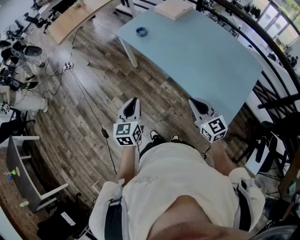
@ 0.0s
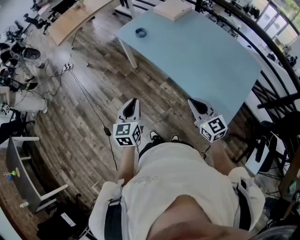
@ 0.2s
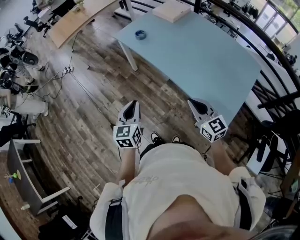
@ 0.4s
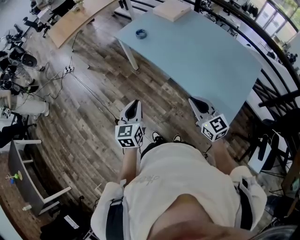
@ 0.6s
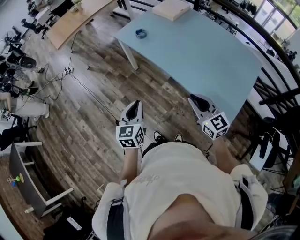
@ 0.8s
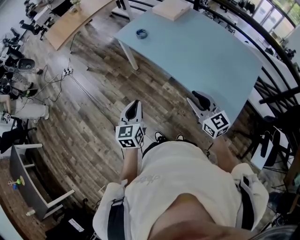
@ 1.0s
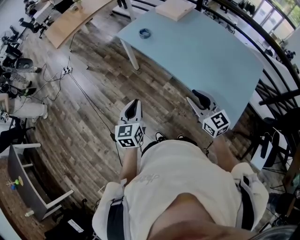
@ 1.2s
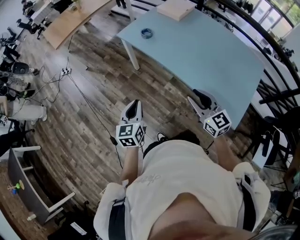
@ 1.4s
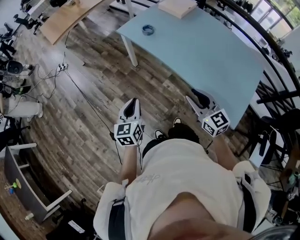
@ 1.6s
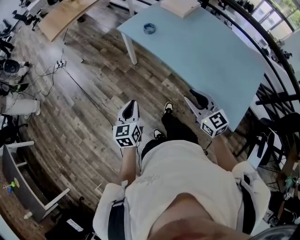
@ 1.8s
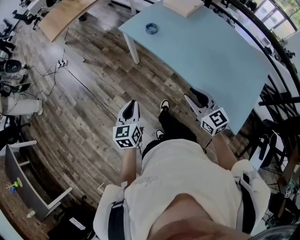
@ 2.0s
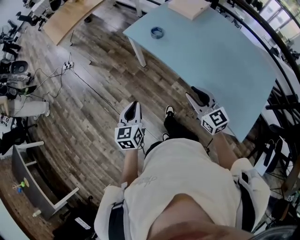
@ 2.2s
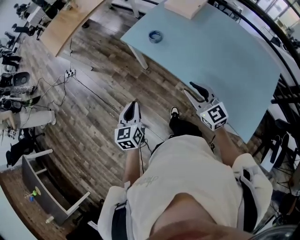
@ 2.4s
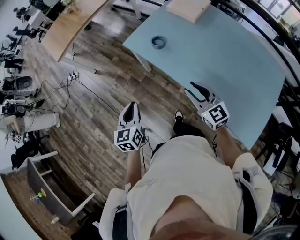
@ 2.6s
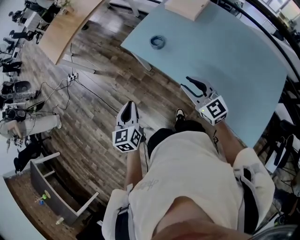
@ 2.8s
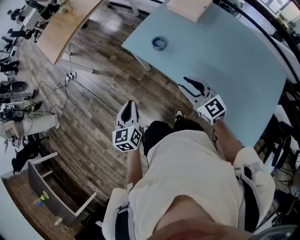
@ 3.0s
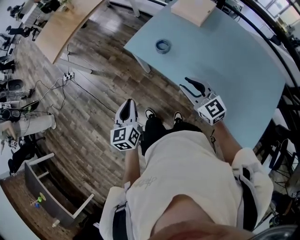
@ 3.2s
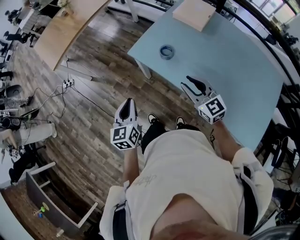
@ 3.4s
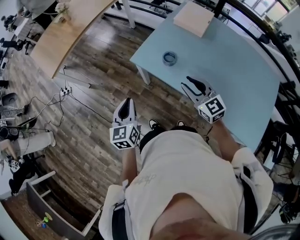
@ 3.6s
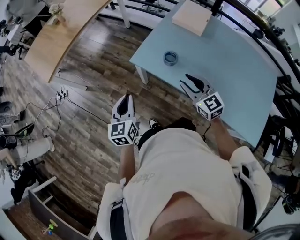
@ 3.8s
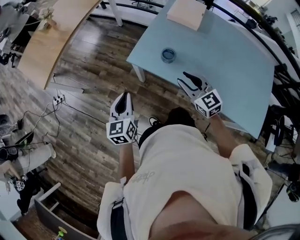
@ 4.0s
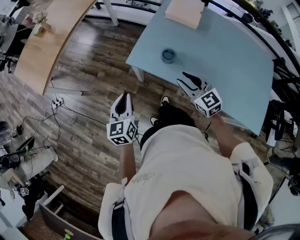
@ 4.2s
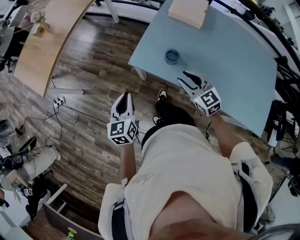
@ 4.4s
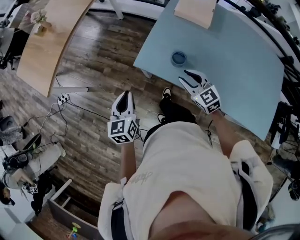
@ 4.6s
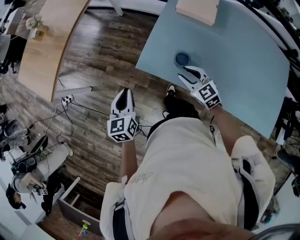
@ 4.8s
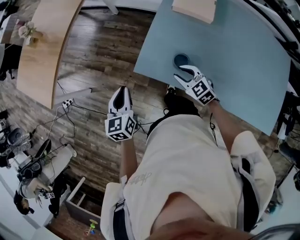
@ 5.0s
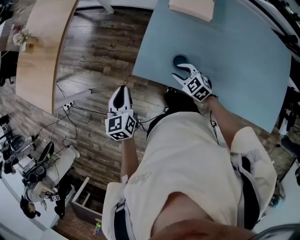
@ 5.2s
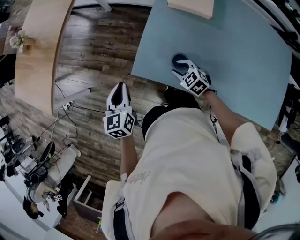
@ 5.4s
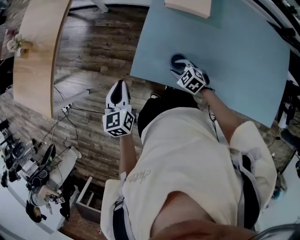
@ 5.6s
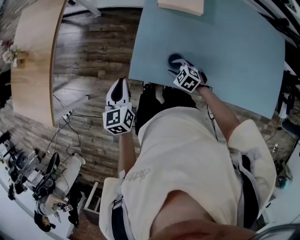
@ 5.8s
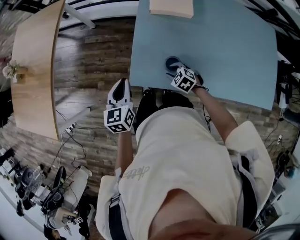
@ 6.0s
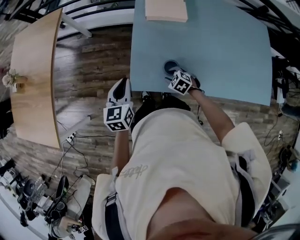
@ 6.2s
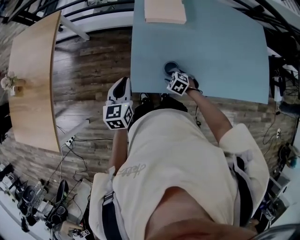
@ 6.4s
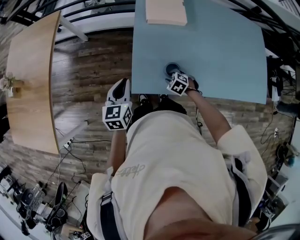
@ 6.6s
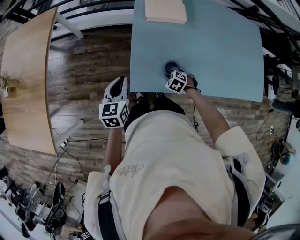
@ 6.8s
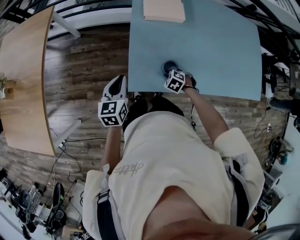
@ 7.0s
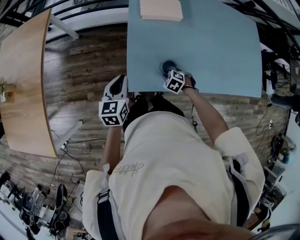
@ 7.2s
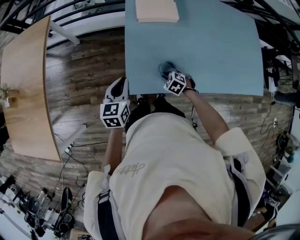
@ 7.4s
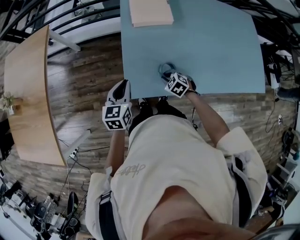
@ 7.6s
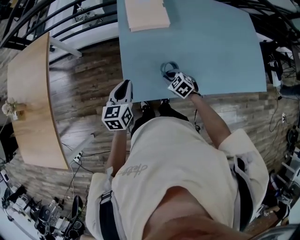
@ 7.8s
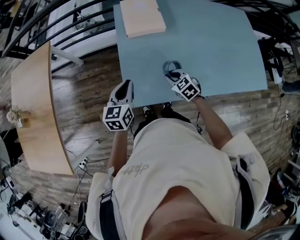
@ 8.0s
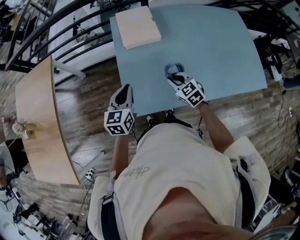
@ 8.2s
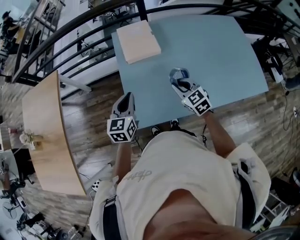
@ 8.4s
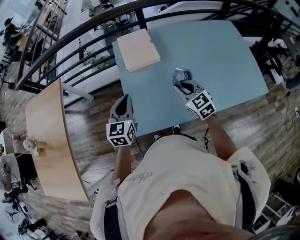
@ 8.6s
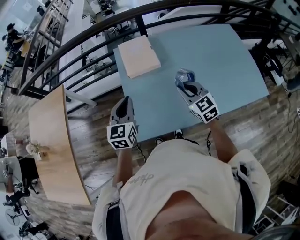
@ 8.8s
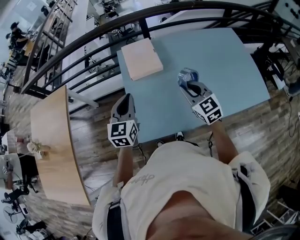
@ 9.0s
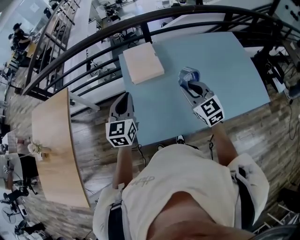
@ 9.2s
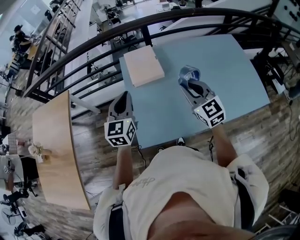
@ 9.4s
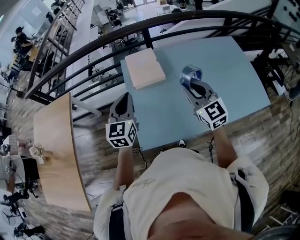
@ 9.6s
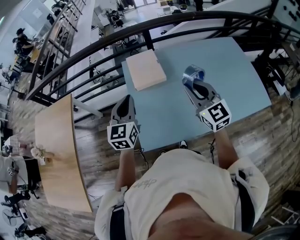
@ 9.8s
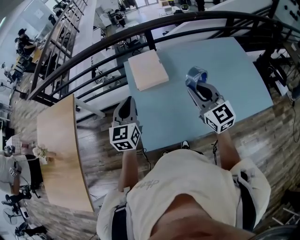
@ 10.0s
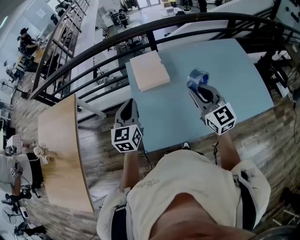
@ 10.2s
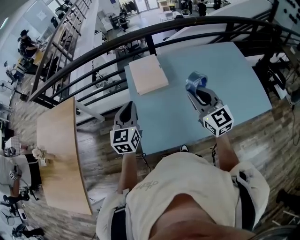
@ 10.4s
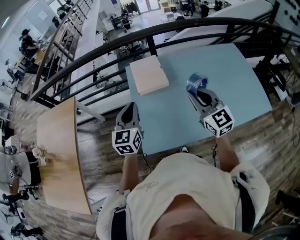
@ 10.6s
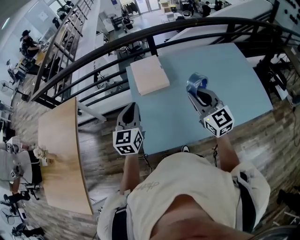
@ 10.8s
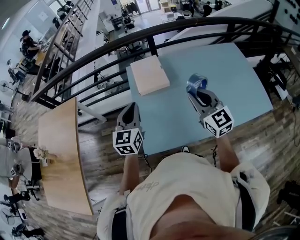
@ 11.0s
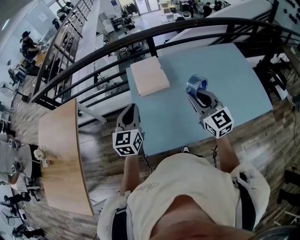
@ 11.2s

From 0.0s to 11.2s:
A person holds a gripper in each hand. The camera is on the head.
From 0.0s to 1.6s: The grippers both shift to the left and forward by roughly 10 cm. The right gripper opens up.
From 1.6s to 3.2s: The two grippers go roughly 30 cm forward.
From 3.2s to 4.8s: The left gripper is displaced forward by some 30 cm. The right gripper shifts approximately 25 cm forward and downward, and swivels approximately 20 degrees.
From 4.8s to 6.4s: The left gripper is displaced forward and to the right by some 20 cm, and swivels approximately 30 degrees. The right gripper is displaced downward by approximately 15 cm, and tips its fingers downward by about 40 degrees.
From 6.4s to 8.0s: The left gripper changes place by about 10 cm. Meanwhile the right gripper heads upward, covering roughly 10 cm, changes its angle by roughly 30 degrees, and closes its fingers.
From 8.0s to 9.6s: The left gripper goes some 20 cm upward, and changes its angle by some 20 degrees; the right gripper shifts roughly 30 cm upward, and tips its fingers upward by approximately 40 degrees.
From 9.6s to 11.2s: The grippers make only small movements.

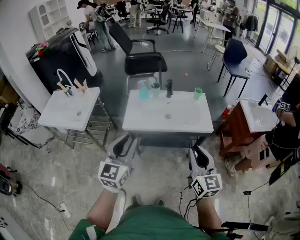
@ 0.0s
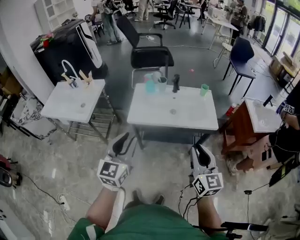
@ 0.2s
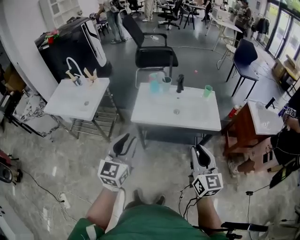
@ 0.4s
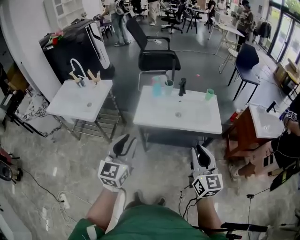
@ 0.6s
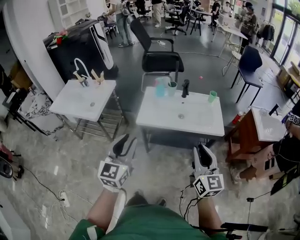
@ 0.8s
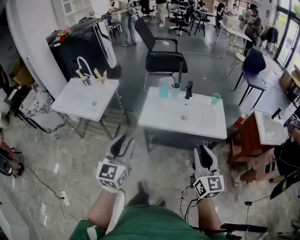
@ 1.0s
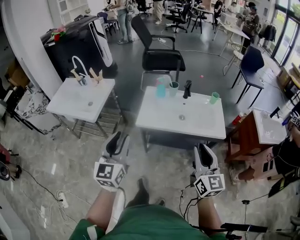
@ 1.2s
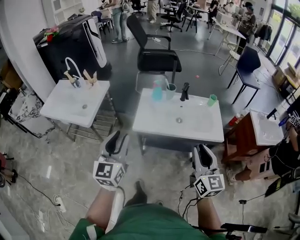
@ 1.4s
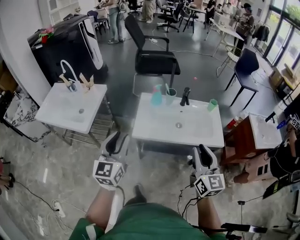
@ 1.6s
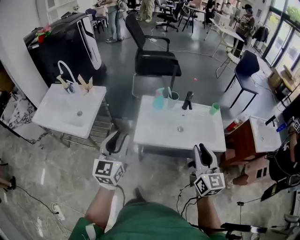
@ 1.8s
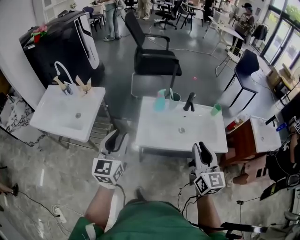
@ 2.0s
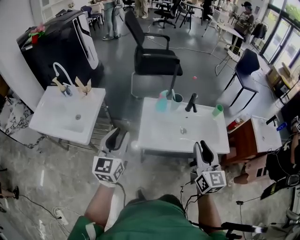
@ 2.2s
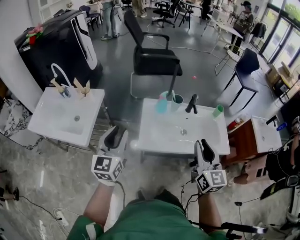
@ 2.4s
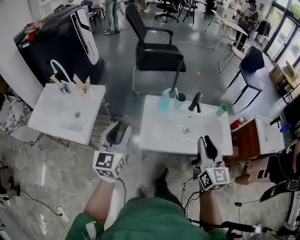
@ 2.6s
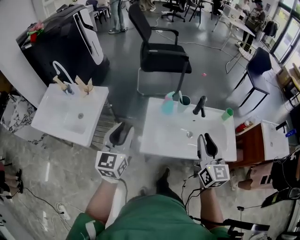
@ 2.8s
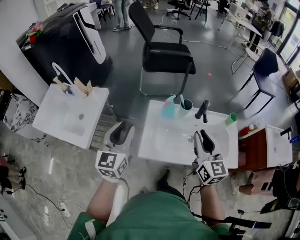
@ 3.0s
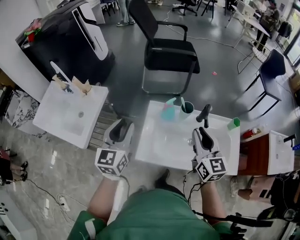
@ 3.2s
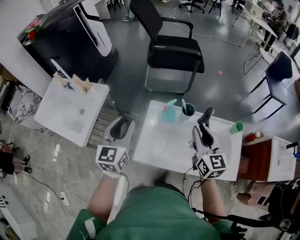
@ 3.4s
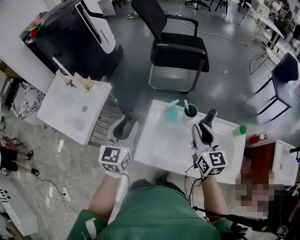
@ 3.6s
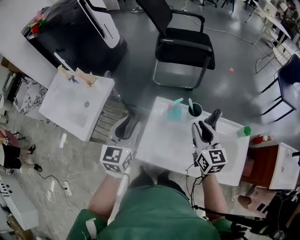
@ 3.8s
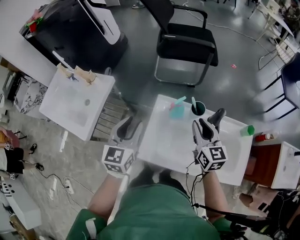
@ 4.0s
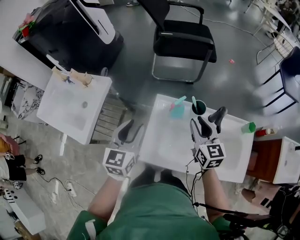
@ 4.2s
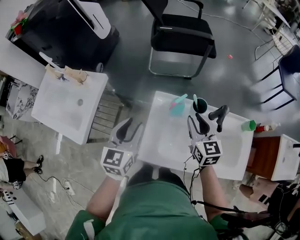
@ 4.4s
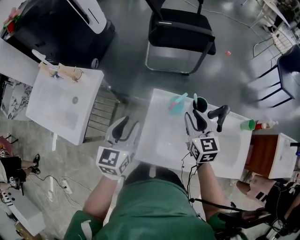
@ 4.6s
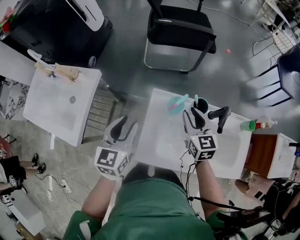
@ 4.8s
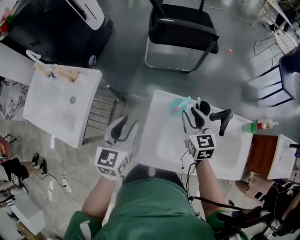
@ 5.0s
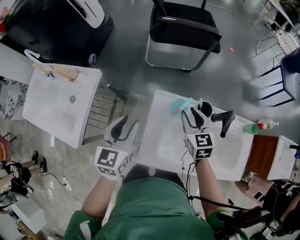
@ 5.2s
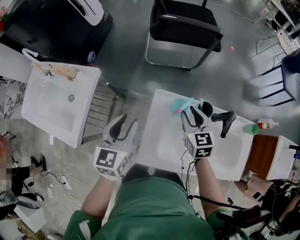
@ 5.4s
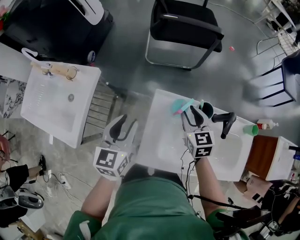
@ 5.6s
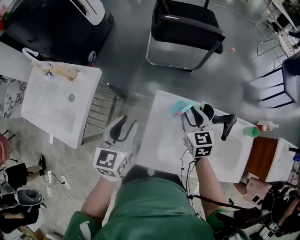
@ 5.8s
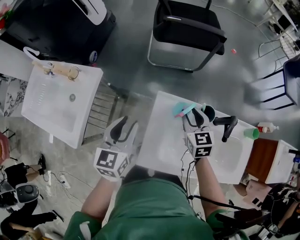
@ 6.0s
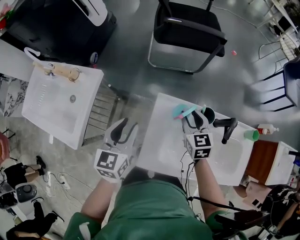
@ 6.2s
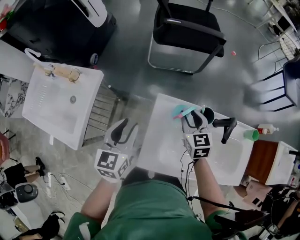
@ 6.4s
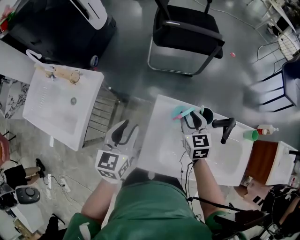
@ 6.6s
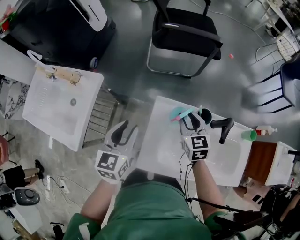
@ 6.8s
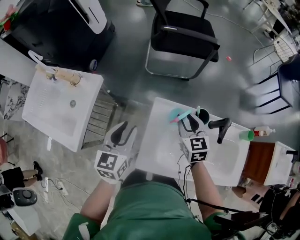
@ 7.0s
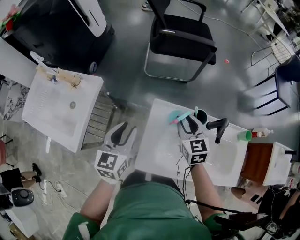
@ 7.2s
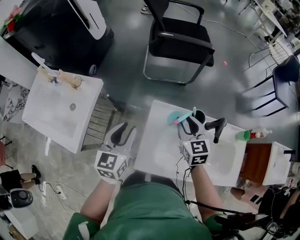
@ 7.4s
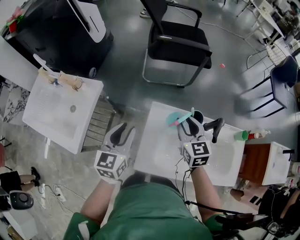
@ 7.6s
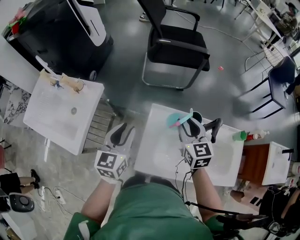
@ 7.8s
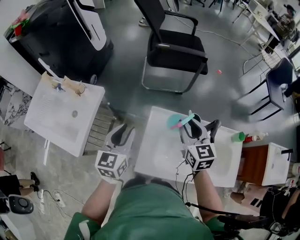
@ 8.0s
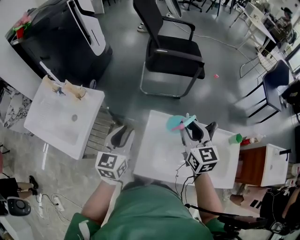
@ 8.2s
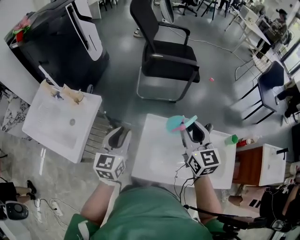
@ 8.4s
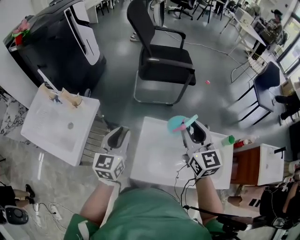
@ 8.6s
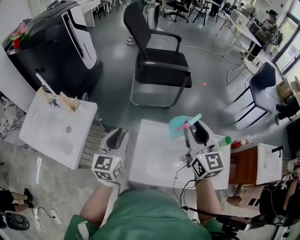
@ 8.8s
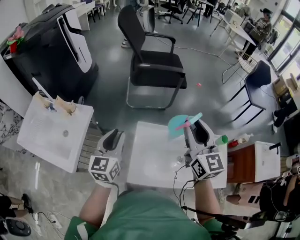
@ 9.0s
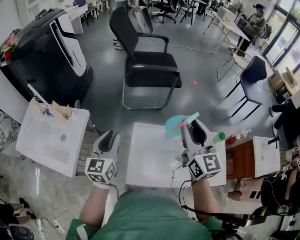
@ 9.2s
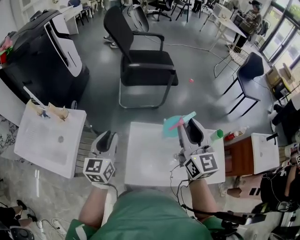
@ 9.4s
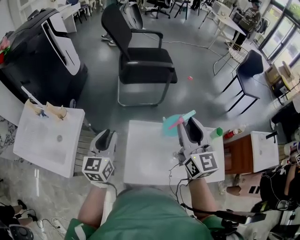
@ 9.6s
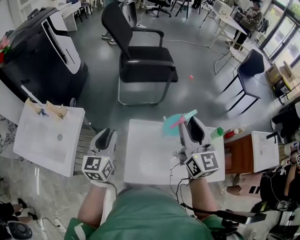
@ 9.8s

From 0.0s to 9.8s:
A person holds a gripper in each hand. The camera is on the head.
From 0.0s to 1.4s: The left gripper heads to the left and forward, covering roughly 15 cm. Meanwhile the right gripper heads forward and to the left, covering about 10 cm.
From 1.4s to 2.8s: Both grippers move forward, some 25 cm.
From 2.8s to 4.2s: The left gripper shifts some 20 cm forward, downward and to the right; the right gripper shifts roughly 25 cm forward and downward, and rotates roughly 20 degrees.
From 4.2s to 5.6s: The right gripper travels forward, downward and to the left by about 15 cm; the left gripper moves forward and downward, roughly 10 cm.
From 5.6s to 7.0s: The grippers move only a little.
From 7.0s to 8.4s: The right gripper moves upward, about 20 cm. The left gripper is displaced upward by roughly 10 cm.
From 8.4s to 9.8s: The right gripper goes roughly 10 cm upward and to the right.

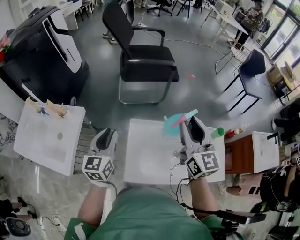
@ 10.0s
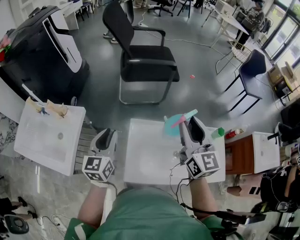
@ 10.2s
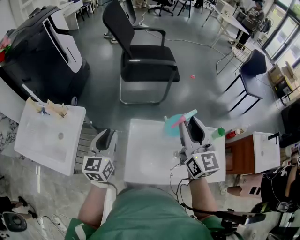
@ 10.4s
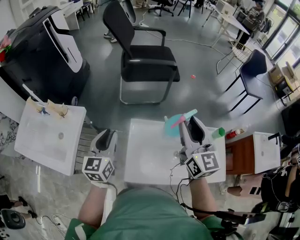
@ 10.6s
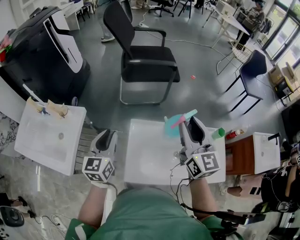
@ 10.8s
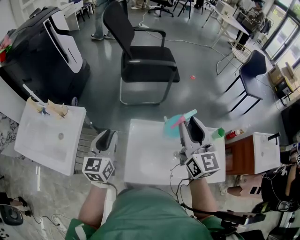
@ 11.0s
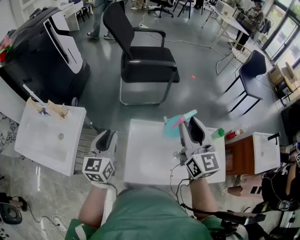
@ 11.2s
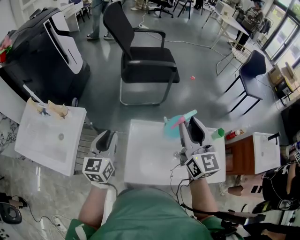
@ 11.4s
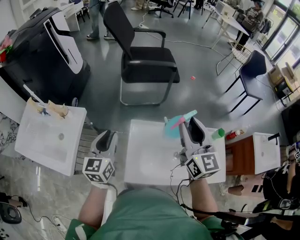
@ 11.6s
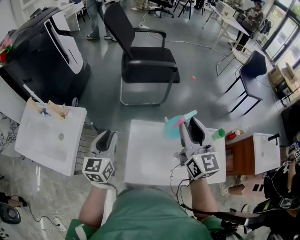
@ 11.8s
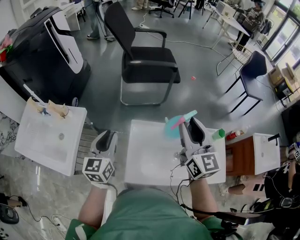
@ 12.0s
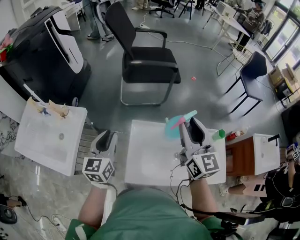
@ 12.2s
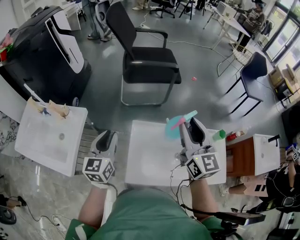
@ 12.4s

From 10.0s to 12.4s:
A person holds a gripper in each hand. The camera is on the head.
From 10.0s to 11.2s: Neither gripper changes place.
From 11.2s to 12.4s: The grippers stay close to where they were, moving slightly.
